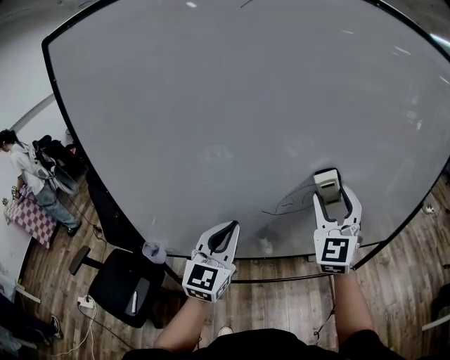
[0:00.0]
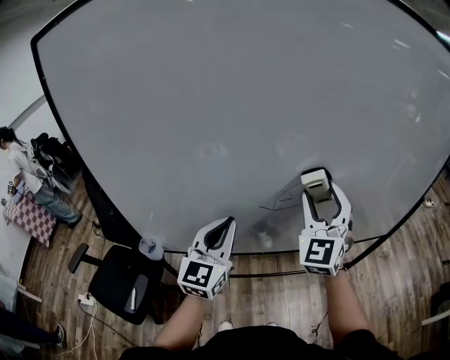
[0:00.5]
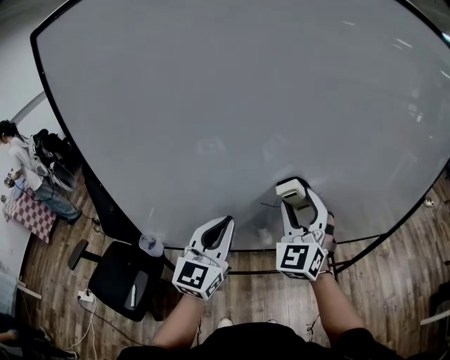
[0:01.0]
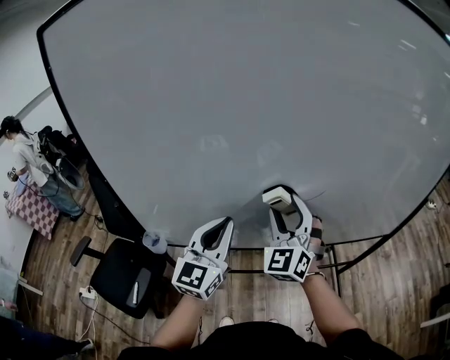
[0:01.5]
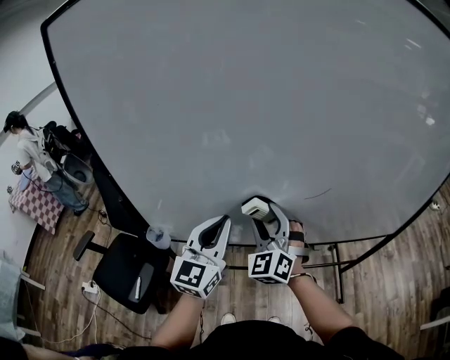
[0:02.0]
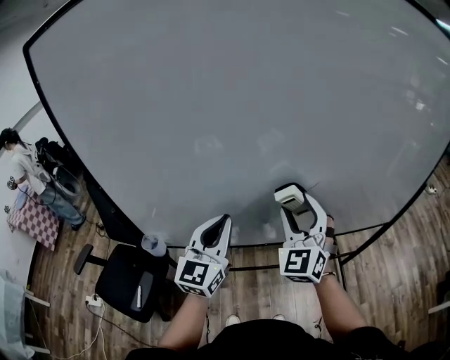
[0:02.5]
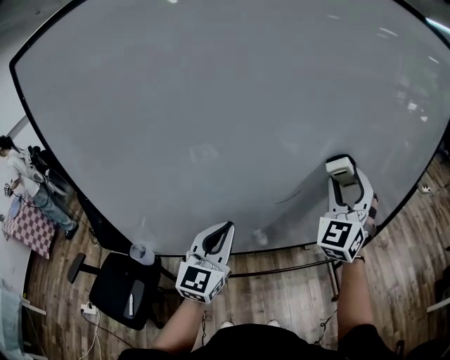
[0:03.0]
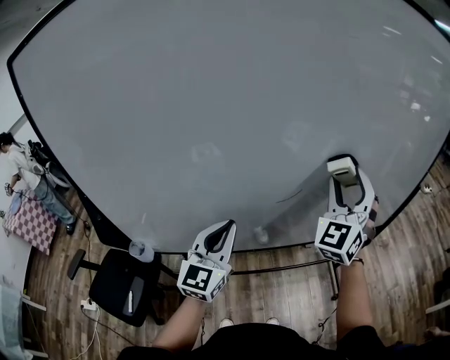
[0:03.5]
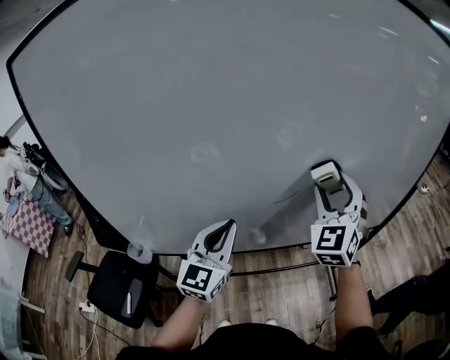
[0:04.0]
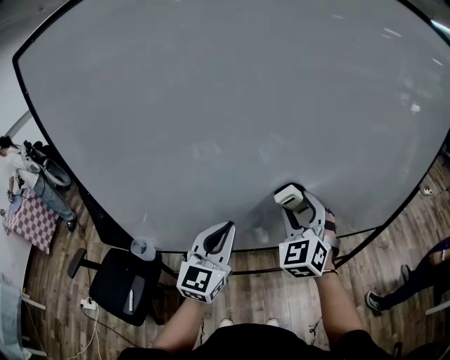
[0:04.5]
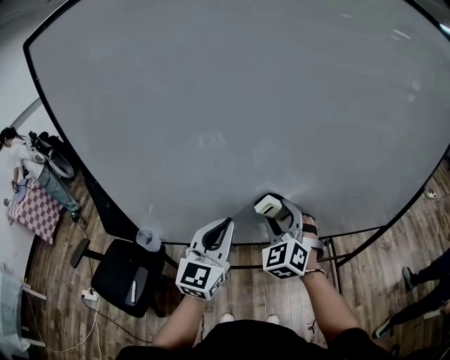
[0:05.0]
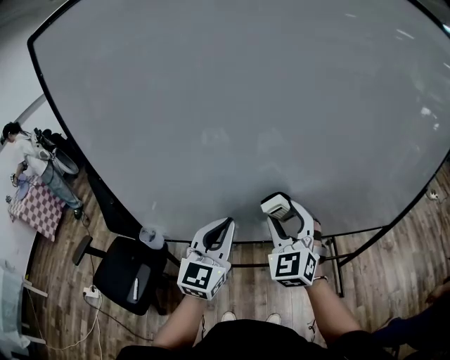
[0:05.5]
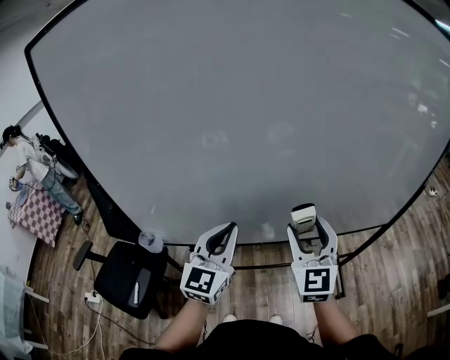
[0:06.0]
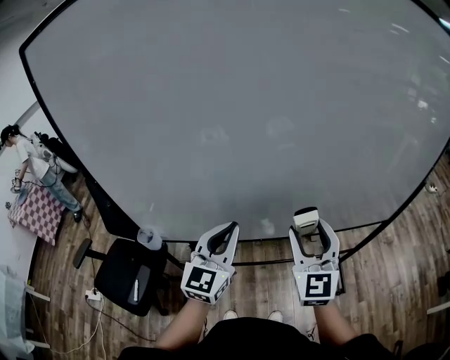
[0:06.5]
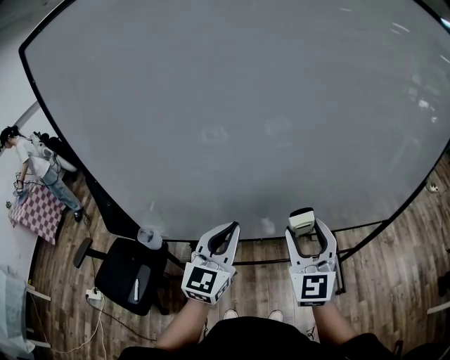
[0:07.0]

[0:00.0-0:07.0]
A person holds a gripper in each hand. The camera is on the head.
0:00.0 to 0:02.0: The right gripper shifts approximately 25 cm to the left and downward, and swivels some 20 degrees.
0:02.0 to 0:03.5: The left gripper travels to the right by about 10 cm; the right gripper heads to the right and upward, covering about 30 cm, and changes its angle by some 30 degrees.
0:03.5 to 0:05.0: The right gripper shifts approximately 25 cm to the left and downward, and swivels some 40 degrees.
0:05.0 to 0:07.0: The right gripper heads backward and to the right, covering roughly 10 cm, and rotates about 30 degrees.

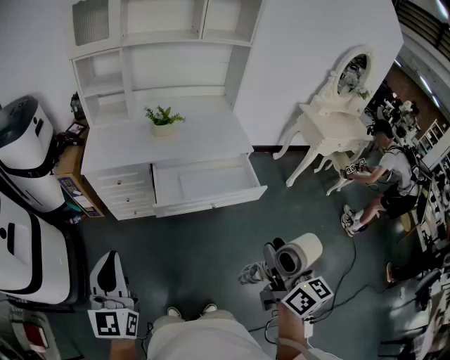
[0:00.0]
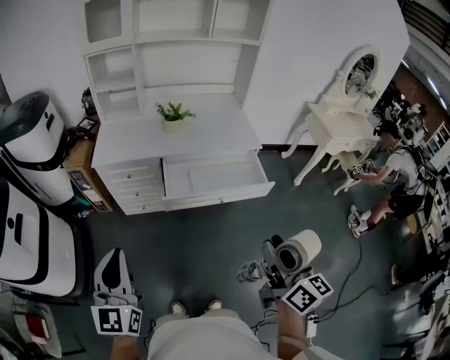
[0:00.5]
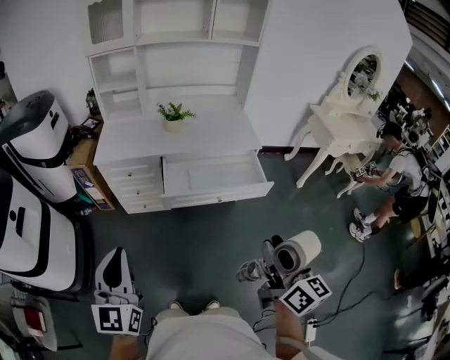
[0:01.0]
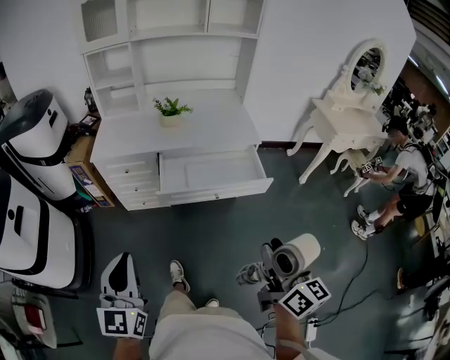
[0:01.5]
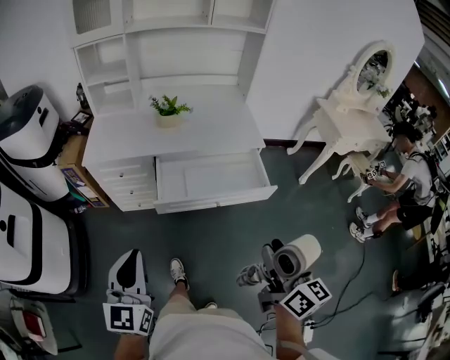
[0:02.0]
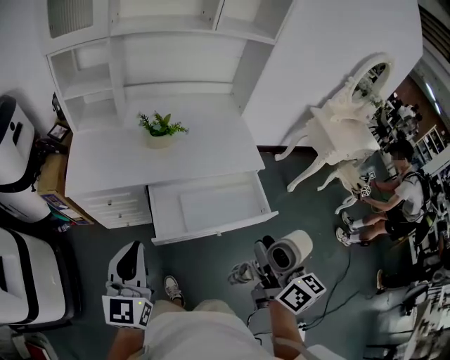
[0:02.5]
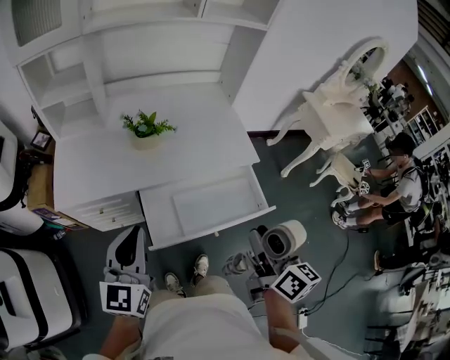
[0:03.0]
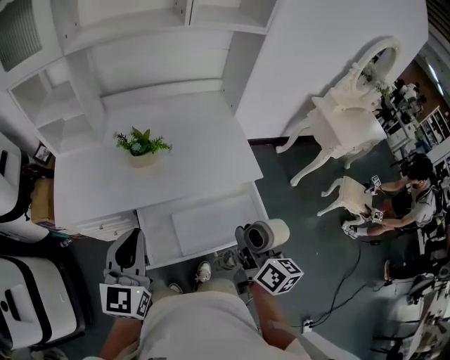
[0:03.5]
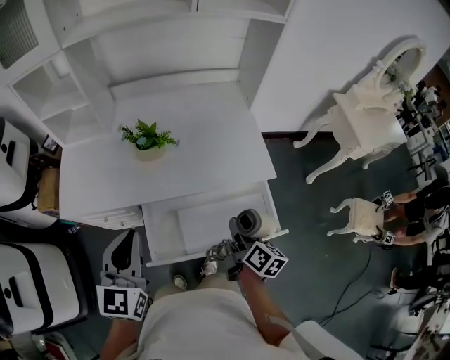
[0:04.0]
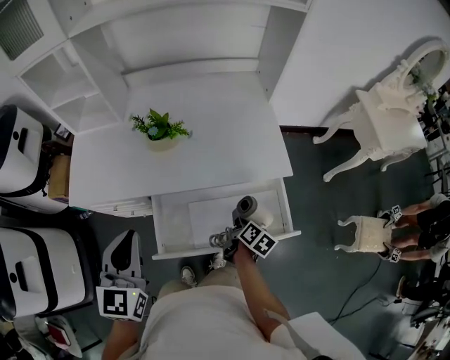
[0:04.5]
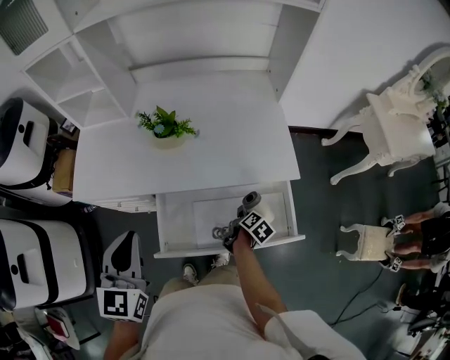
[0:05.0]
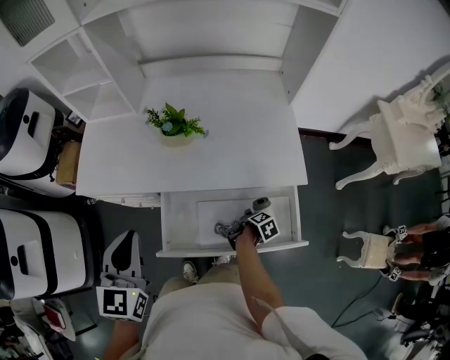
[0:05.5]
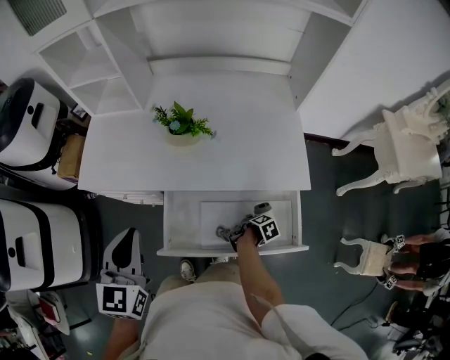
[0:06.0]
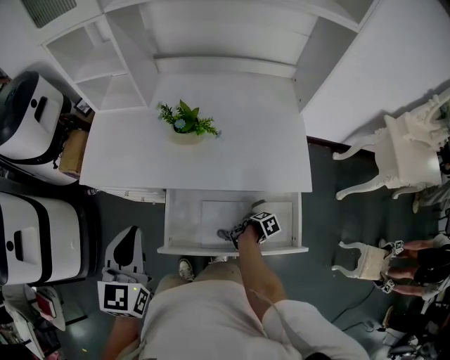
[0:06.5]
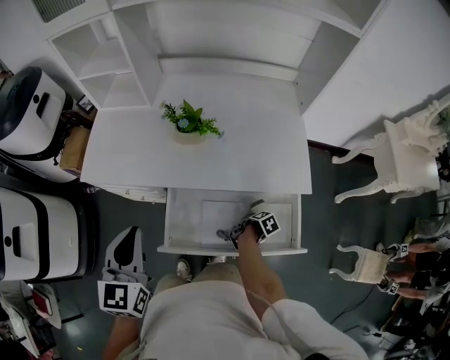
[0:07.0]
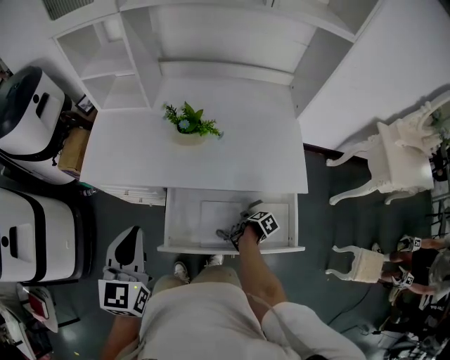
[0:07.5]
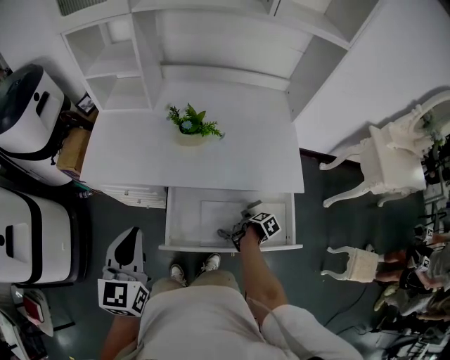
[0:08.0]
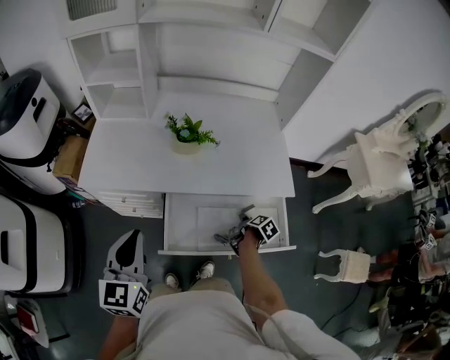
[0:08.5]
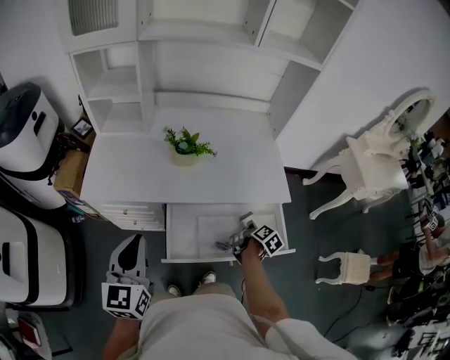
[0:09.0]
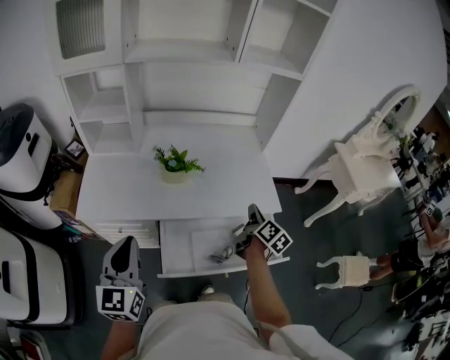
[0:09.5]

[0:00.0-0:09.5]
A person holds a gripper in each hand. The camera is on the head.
0:00.0 to 0:02.0: The right gripper changes place by some 5 cm, while the left gripper goes some 10 cm to the right and downward.
0:02.0 to 0:04.0: The left gripper goes approximately 40 cm forward. Meanwhile the right gripper goes roughly 40 cm forward and downward, and changes its angle by roughly 30 degrees.
0:04.0 to 0:05.5: The right gripper goes approximately 25 cm downward, and tilts its fingers approximately 40 degrees downward.
0:05.5 to 0:07.5: The right gripper opens up.
0:07.5 to 0:09.5: The right gripper shifts roughly 30 cm upward, angles its fingers upward, by about 50 degrees, and closes up, while the left gripper ends up approximately 5 cm from where it was.

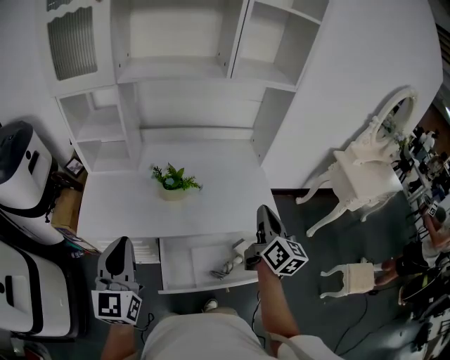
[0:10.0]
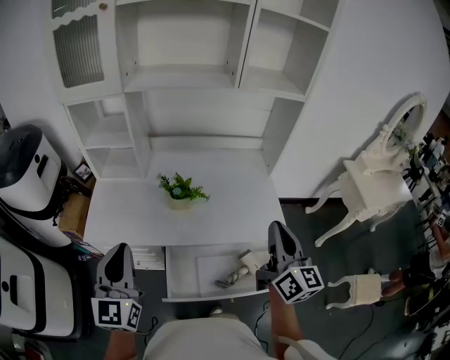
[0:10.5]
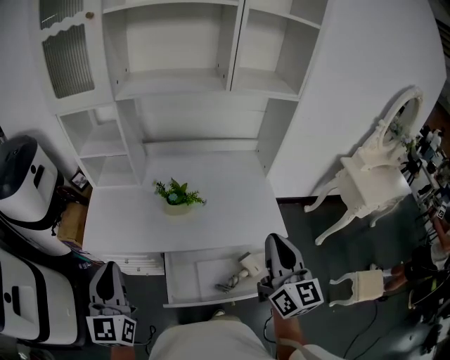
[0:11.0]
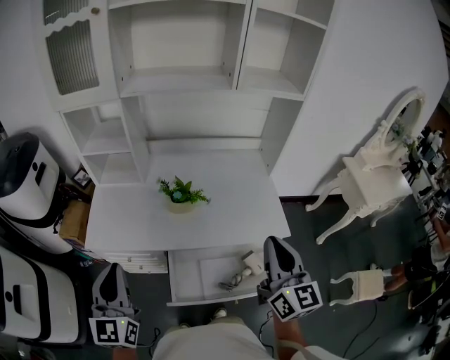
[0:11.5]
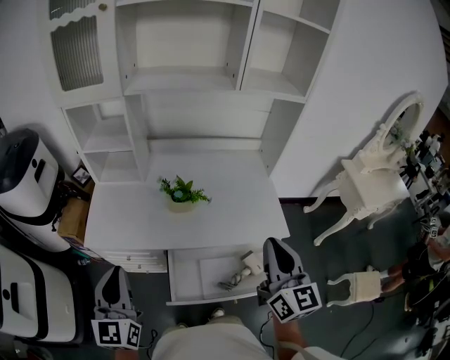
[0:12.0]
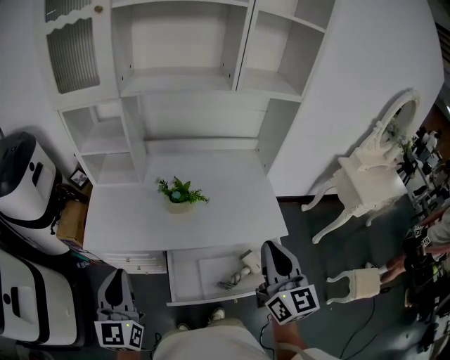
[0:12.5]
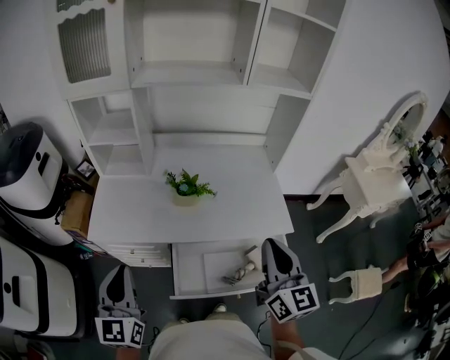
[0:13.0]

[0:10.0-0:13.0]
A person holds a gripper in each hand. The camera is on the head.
0:10.0 to 0:11.5: The right gripper moves upward and backward, about 10 cm.
0:11.5 to 0:13.0: The grippers make only small movements.

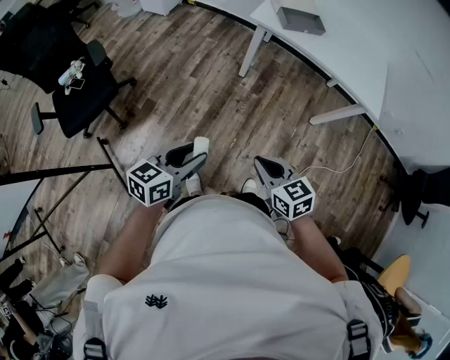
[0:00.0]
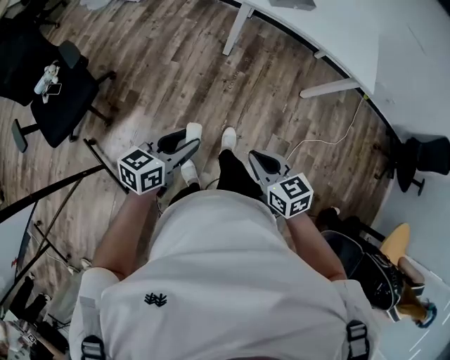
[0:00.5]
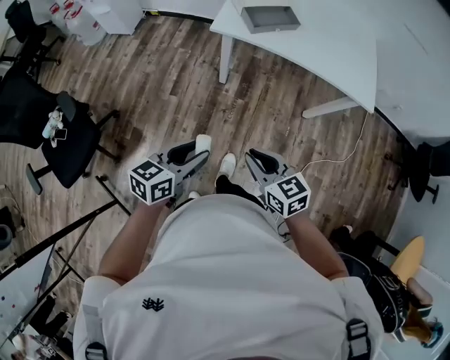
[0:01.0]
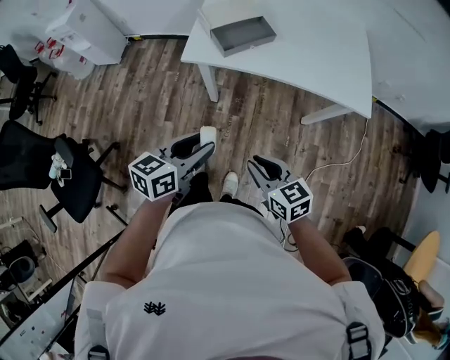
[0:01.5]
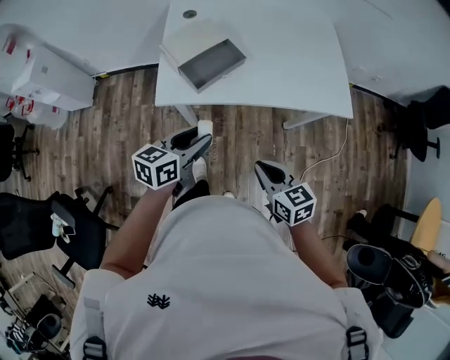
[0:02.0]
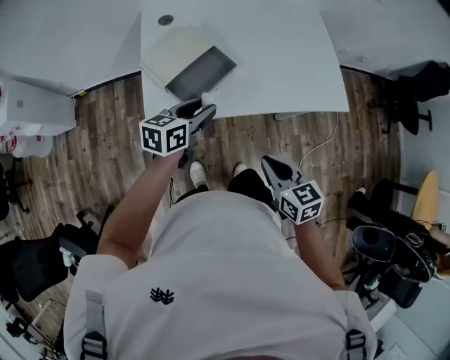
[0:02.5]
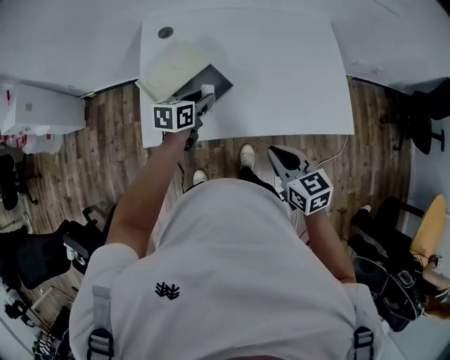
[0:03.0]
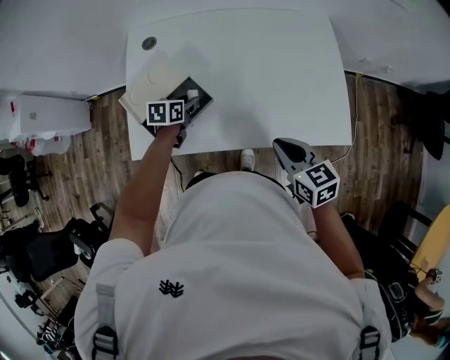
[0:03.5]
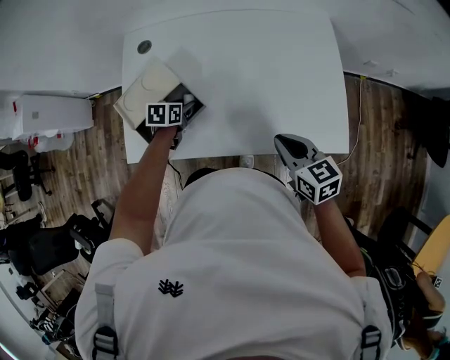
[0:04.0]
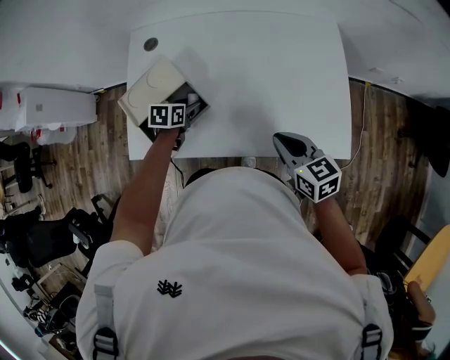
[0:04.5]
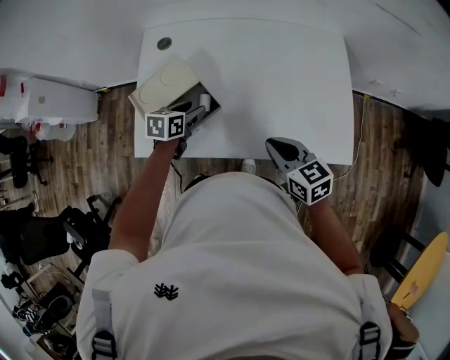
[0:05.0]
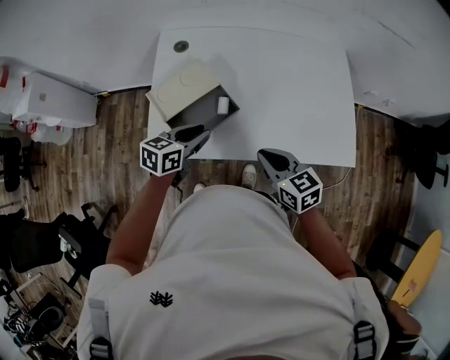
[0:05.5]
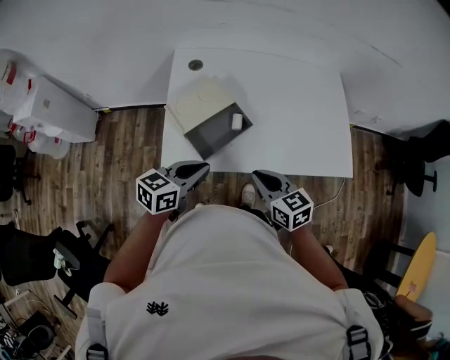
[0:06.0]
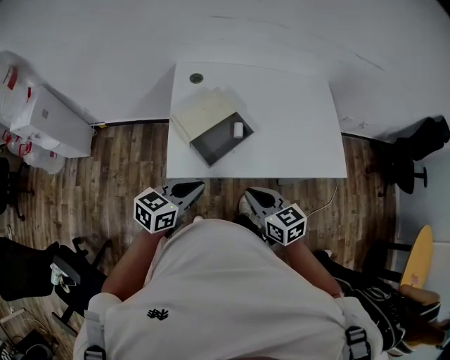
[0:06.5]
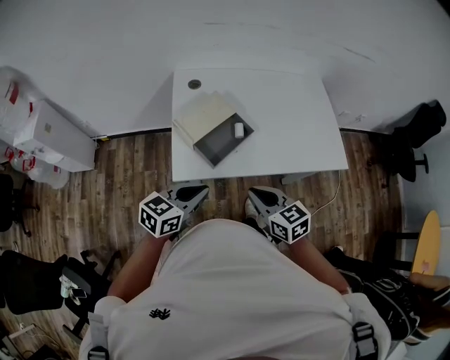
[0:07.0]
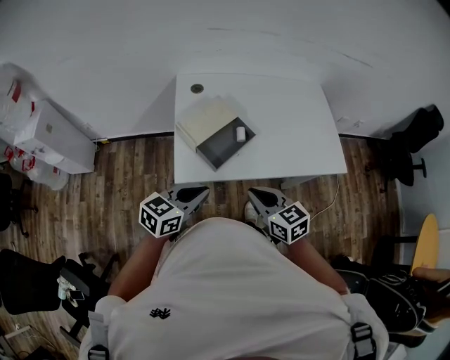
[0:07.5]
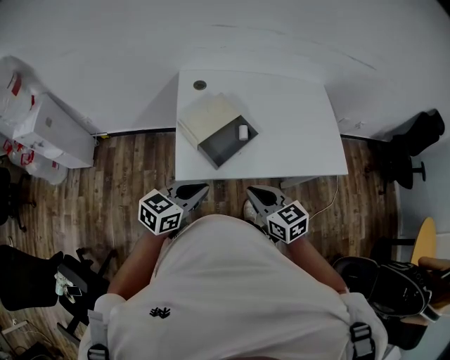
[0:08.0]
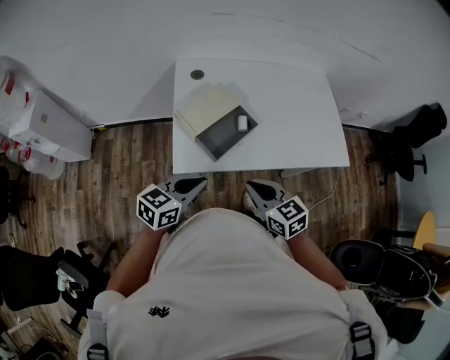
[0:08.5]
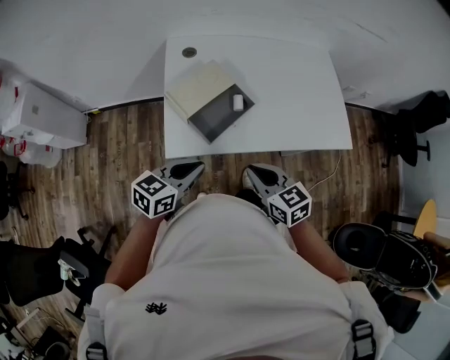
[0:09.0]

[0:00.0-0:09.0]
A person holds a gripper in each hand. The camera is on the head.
0:00.0 to 0:02.0: The left gripper ends up some 50 cm from where it was, and turns by roughly 20 degrees, while the right gripper changes place by roughly 35 cm, and swivels roughly 30 degrees.
0:02.0 to 0:04.5: The right gripper heads forward and to the right, covering roughly 30 cm. The left gripper travels forward and downward by approximately 35 cm, and angles its fingers downward, by approximately 30 degrees.
0:04.5 to 0:07.0: The left gripper moves backward and upward, some 30 cm, tips its fingers upward by about 30 degrees, and closes its fingers. The right gripper moves to the left and backward, roughly 30 cm.
0:07.0 to 0:09.0: The grippers make only small movements.
